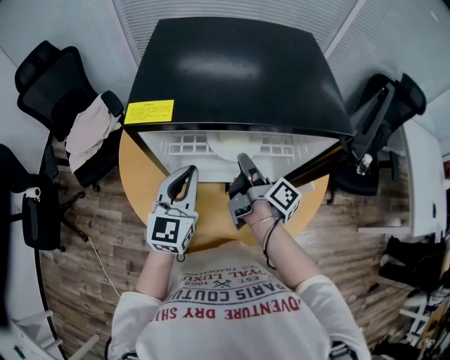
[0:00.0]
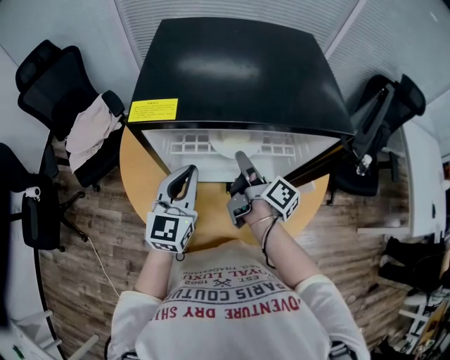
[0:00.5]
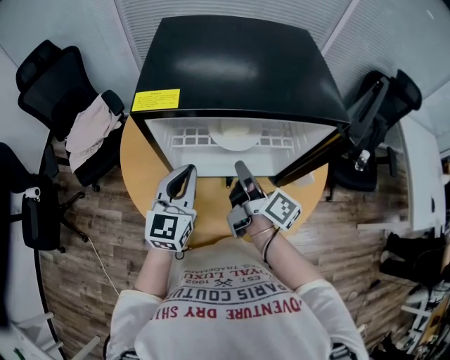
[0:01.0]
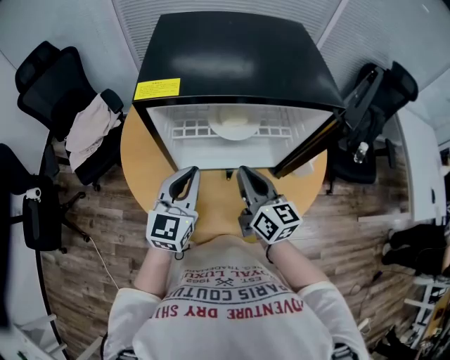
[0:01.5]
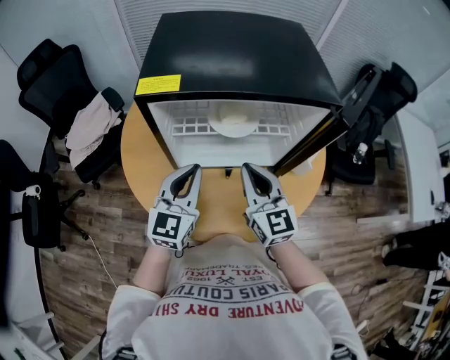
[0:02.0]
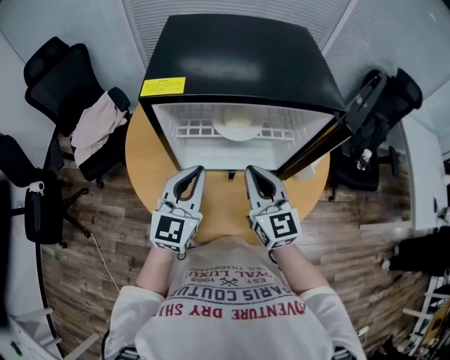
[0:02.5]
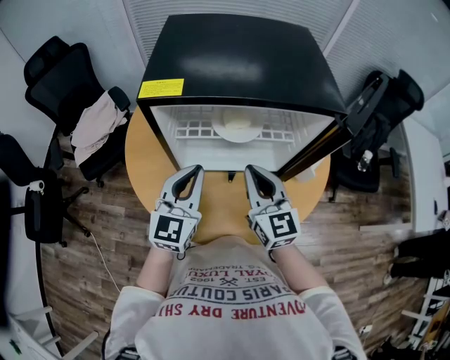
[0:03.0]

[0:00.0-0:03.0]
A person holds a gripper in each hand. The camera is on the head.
0:00.0 to 0:01.5: The left gripper moves approximately 5 cm.

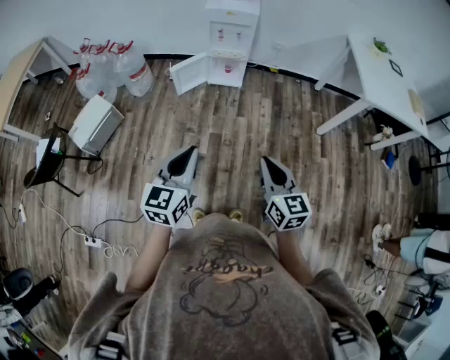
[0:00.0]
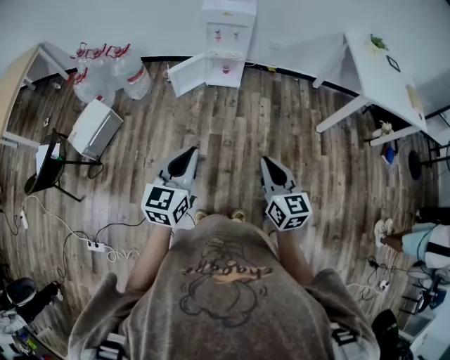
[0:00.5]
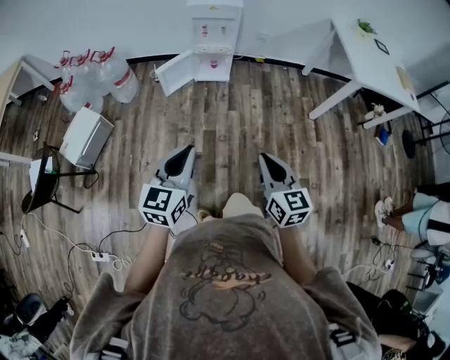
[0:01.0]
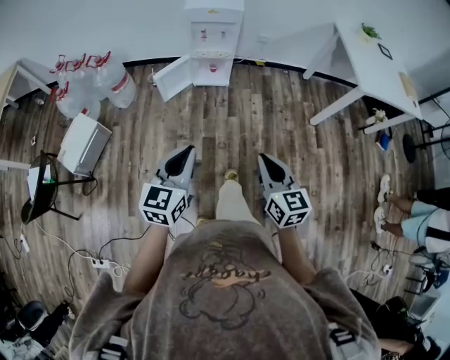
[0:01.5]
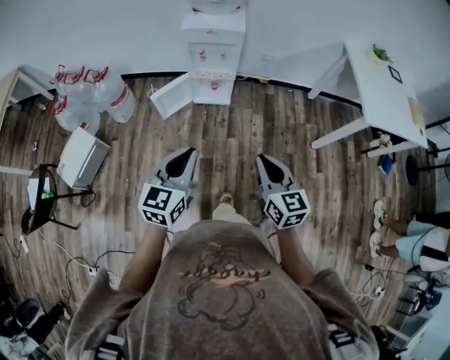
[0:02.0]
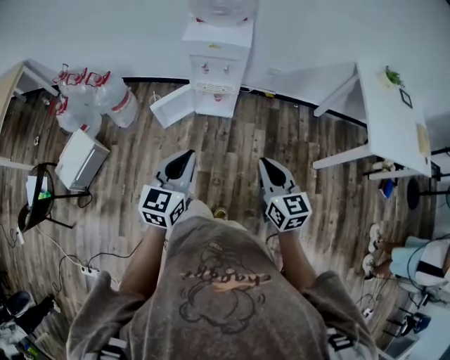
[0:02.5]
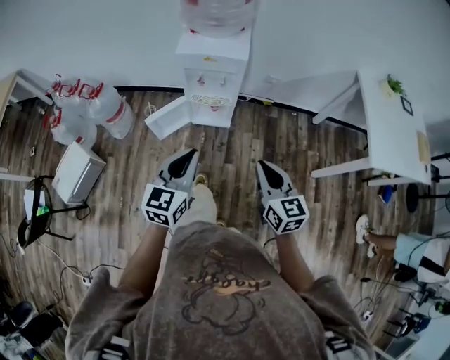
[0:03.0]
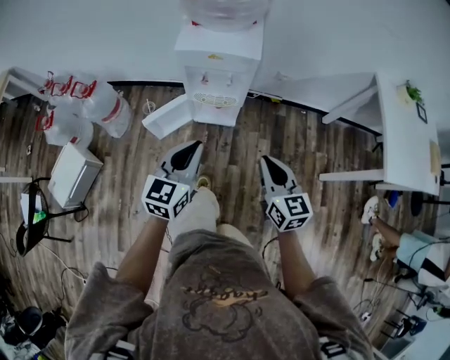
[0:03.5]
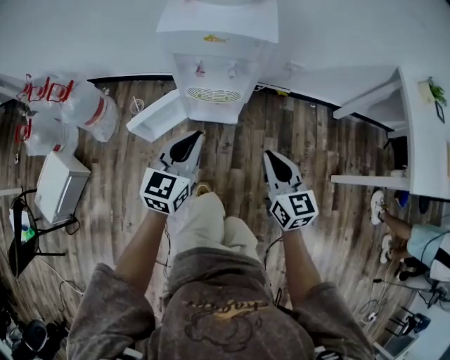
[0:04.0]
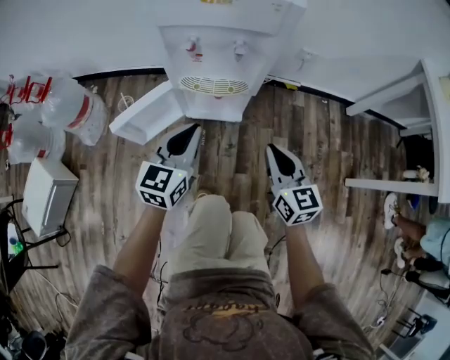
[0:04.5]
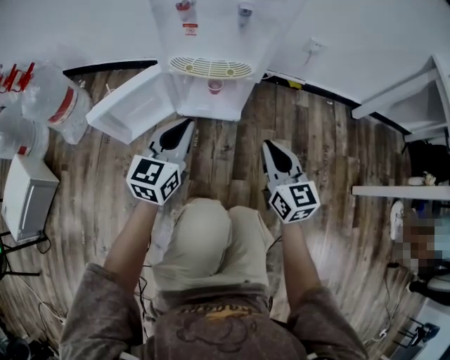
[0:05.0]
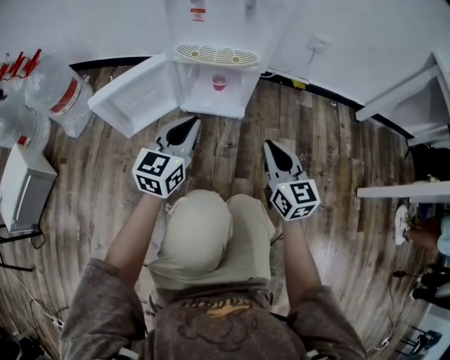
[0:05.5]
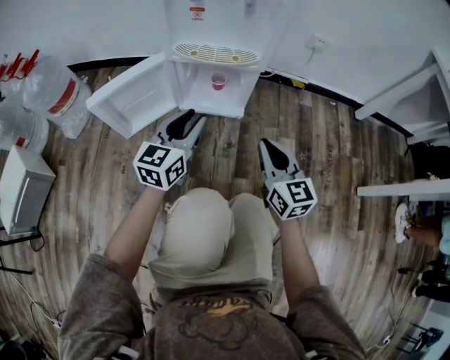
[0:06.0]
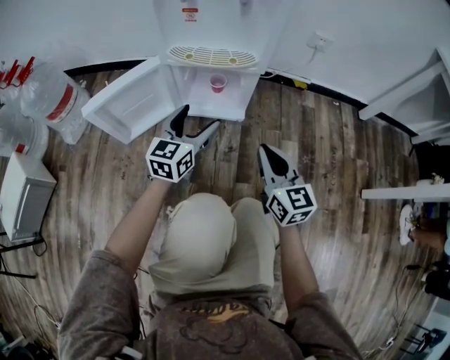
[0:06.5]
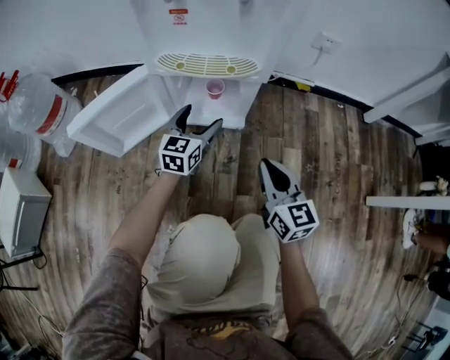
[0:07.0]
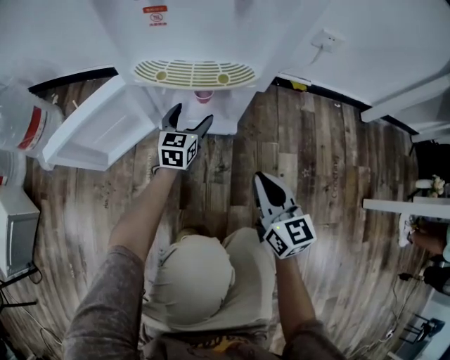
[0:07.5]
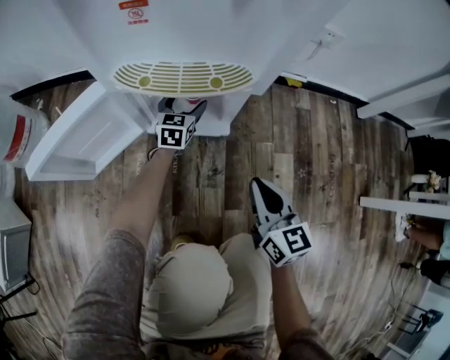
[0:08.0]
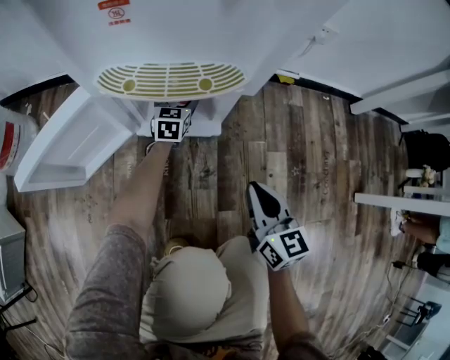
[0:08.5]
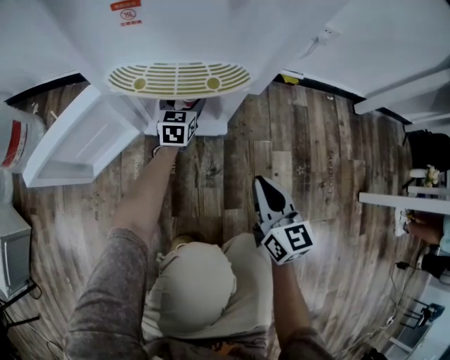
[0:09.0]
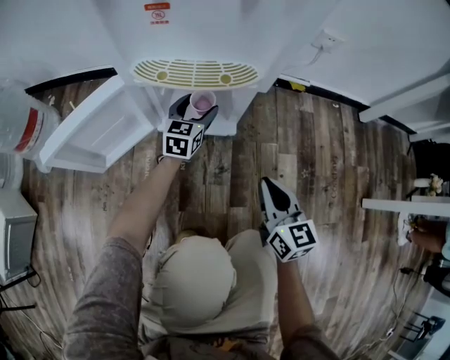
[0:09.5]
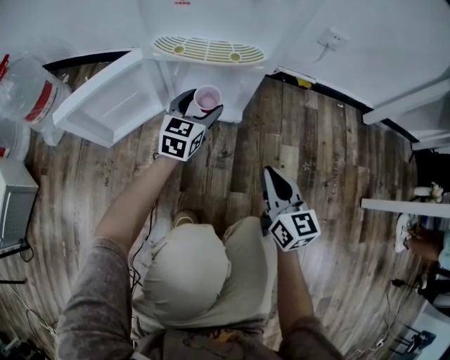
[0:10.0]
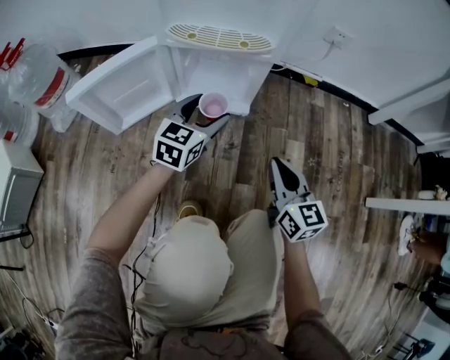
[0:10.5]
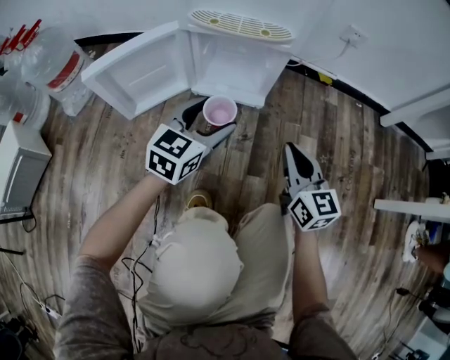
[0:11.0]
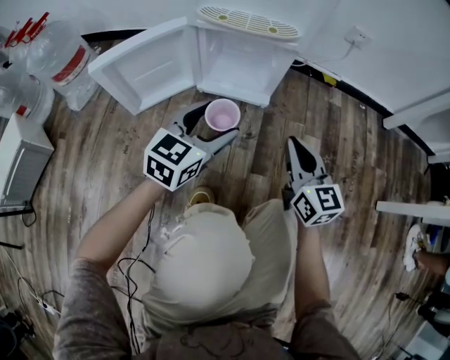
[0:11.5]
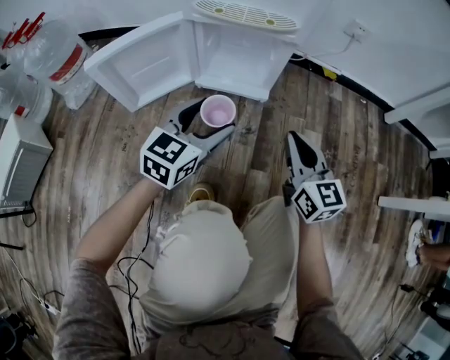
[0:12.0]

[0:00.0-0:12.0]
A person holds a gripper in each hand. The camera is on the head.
0:00.0 to 0:02.0: Both grippers travel together forward, about 25 cm.
0:02.0 to 0:04.0: The two grippers go approximately 50 cm forward and downward.
0:04.0 to 0:06.0: The grippers both shift downward by approximately 35 cm.
0:06.0 to 0:08.0: The right gripper shifts about 15 cm downward and forward, while the left gripper shifts roughly 40 cm forward and downward, and opens up.
0:08.0 to 0:10.0: The right gripper changes place by some 5 cm. Meanwhile the left gripper shifts roughly 15 cm backward and upward.
0:10.0 to 0:12.0: The left gripper is displaced backward by some 20 cm.

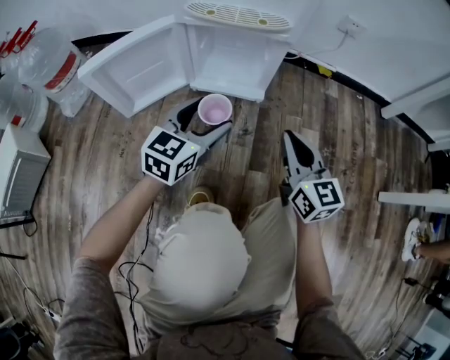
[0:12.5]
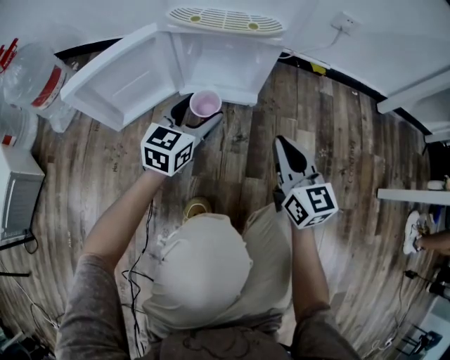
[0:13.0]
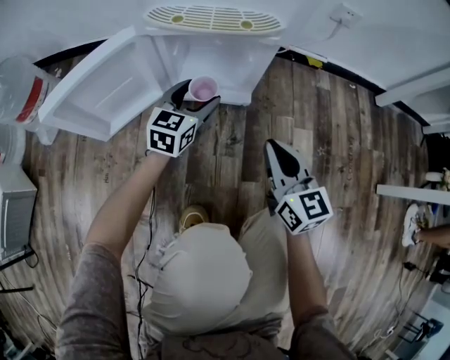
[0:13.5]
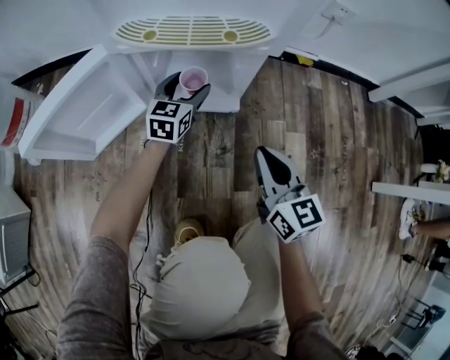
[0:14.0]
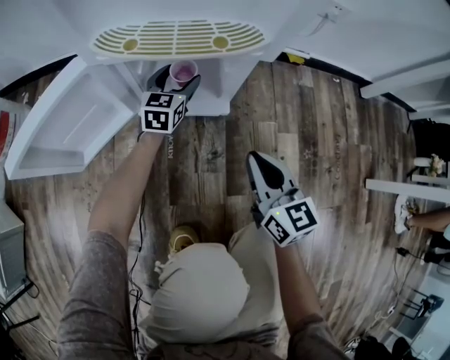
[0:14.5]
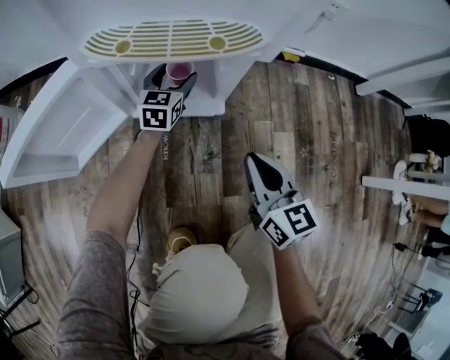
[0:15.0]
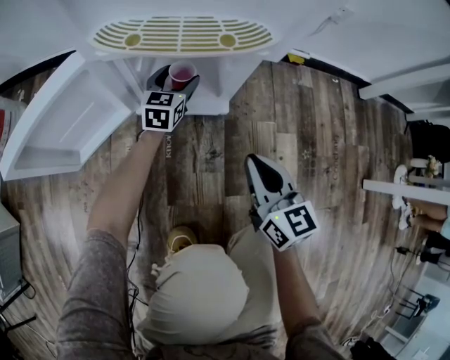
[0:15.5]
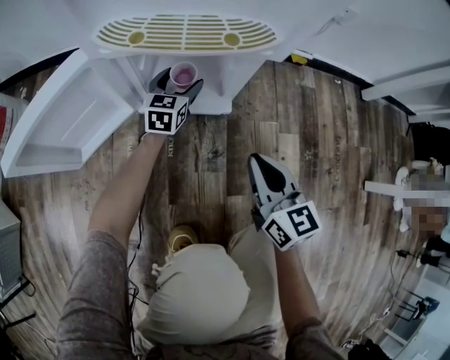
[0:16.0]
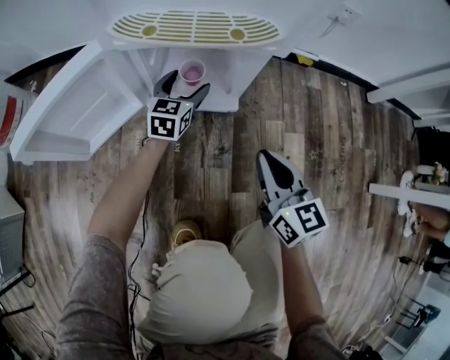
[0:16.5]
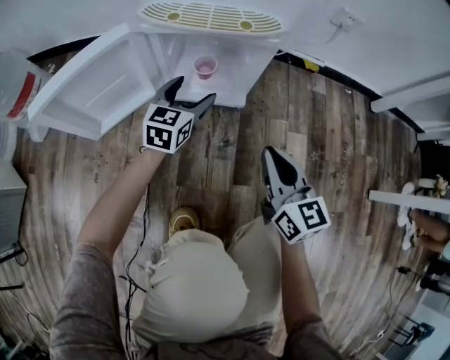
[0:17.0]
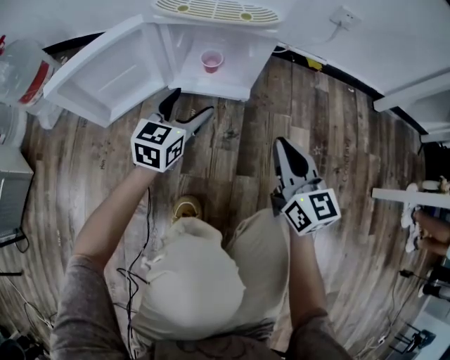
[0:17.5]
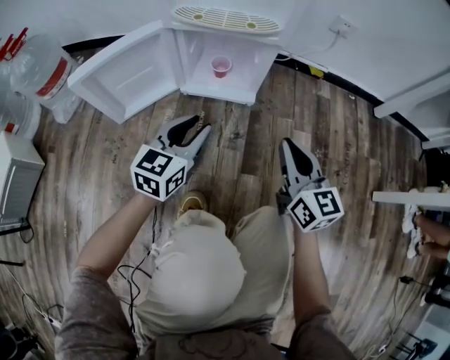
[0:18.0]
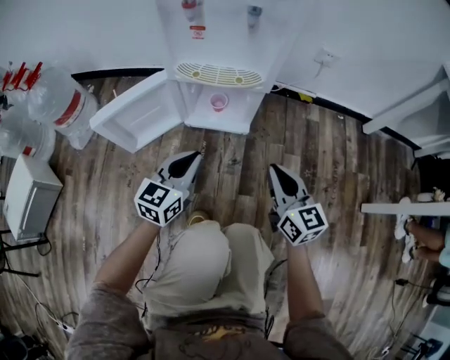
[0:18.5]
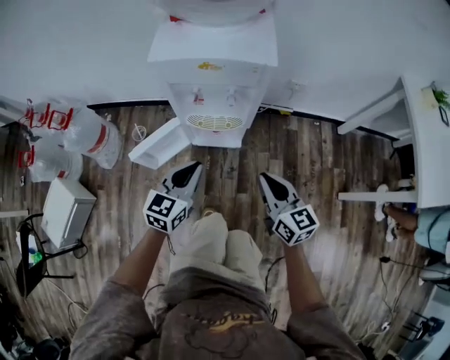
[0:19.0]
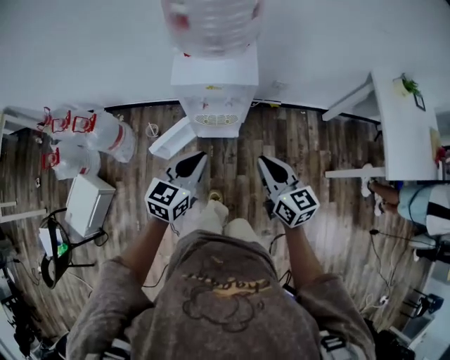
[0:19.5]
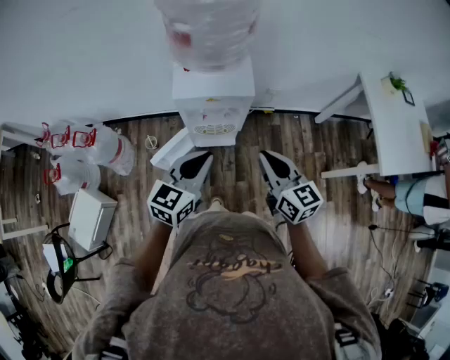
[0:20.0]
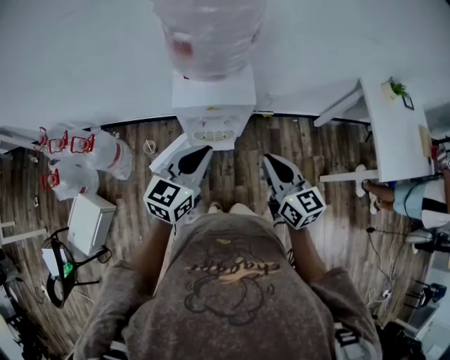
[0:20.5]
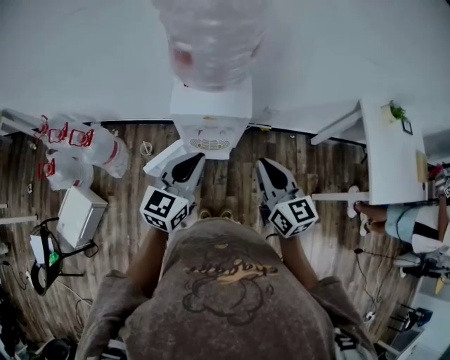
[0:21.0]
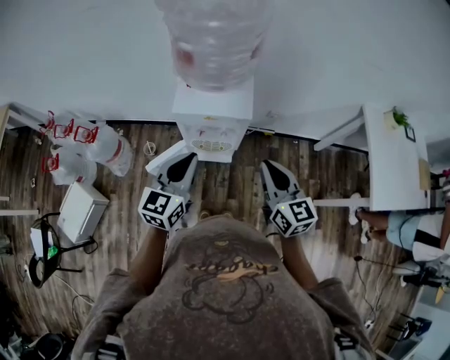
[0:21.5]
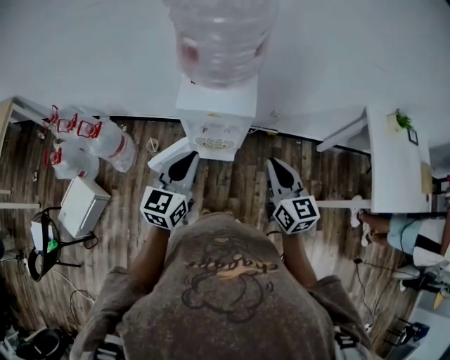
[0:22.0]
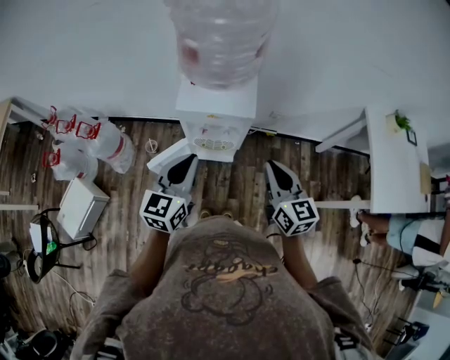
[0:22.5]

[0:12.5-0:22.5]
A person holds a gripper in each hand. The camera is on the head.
0:12.5 to 0:14.5: The right gripper goes approximately 10 cm forward and downward. Meanwhile the left gripper heads forward and downward, covering about 35 cm.
0:14.5 to 0:16.5: There are only small adjustments of the grippers.
0:16.5 to 0:18.5: The left gripper shifts about 35 cm backward and upward, and closes up; the right gripper heads upward and backward, covering roughly 15 cm.
0:18.5 to 0:20.5: Both grippers travel together upward, some 60 cm.
0:20.5 to 0:22.5: The grippers make only small movements.

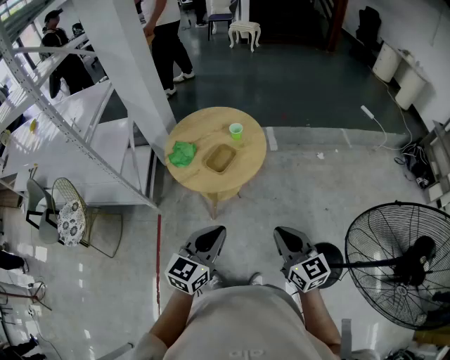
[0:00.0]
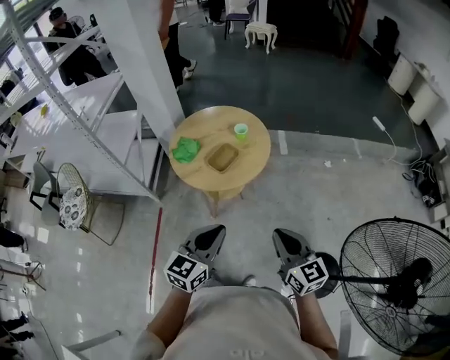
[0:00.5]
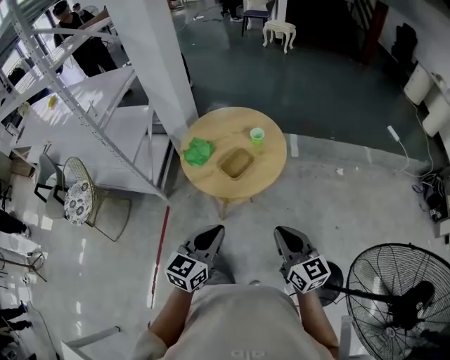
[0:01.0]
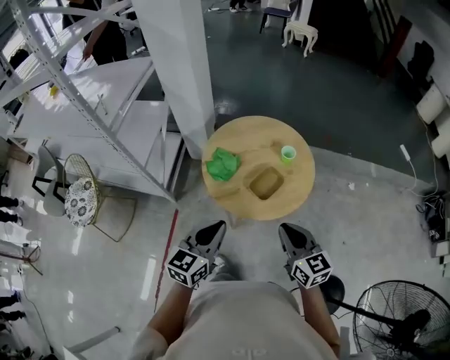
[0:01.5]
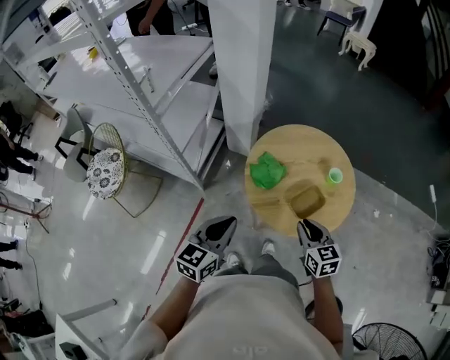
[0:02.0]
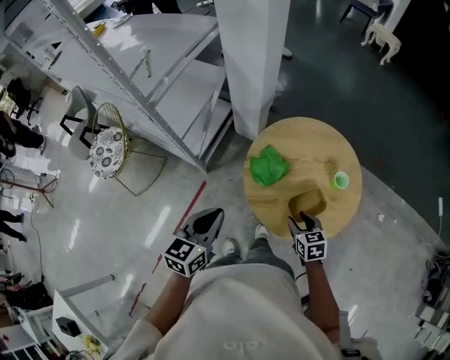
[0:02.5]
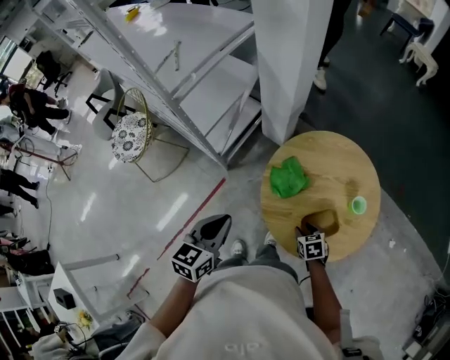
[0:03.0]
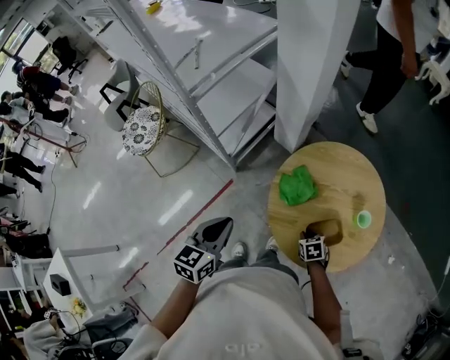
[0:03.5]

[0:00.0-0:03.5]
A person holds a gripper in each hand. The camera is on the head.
0:00.0 to 0:02.0: The right gripper is displaced forward and to the left by approximately 40 cm, and turns by some 30 degrees. The left gripper shifts roughly 40 cm to the left and forward, and changes its angle by approximately 20 degrees.
0:02.0 to 0:03.5: The left gripper moves forward, some 5 cm, and turns by approximately 30 degrees, while the right gripper is displaced downward and forward by roughly 25 cm, tips its fingers downward by about 40 degrees, and opens, then closes again.
